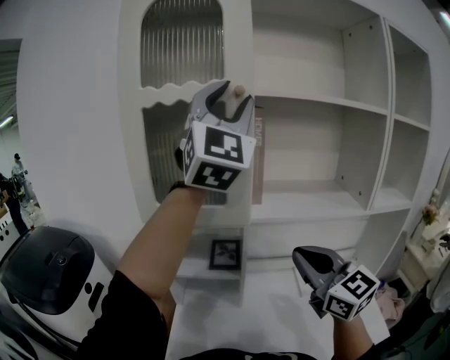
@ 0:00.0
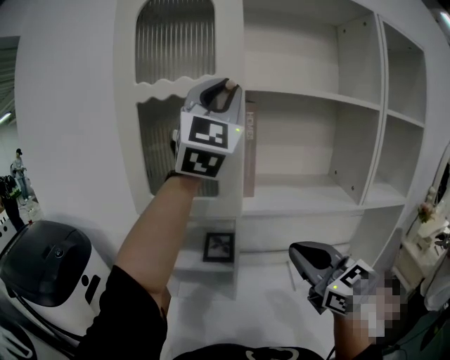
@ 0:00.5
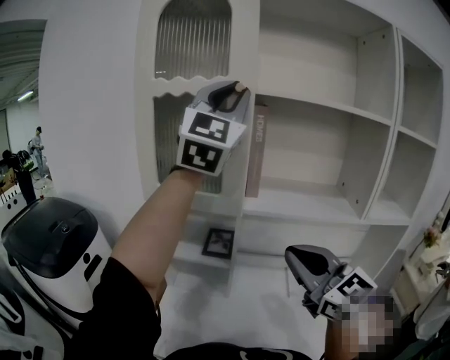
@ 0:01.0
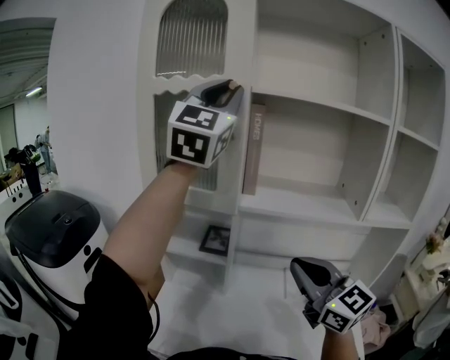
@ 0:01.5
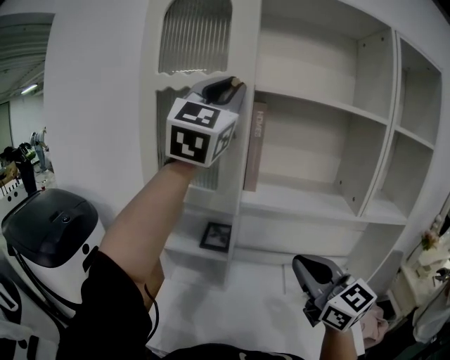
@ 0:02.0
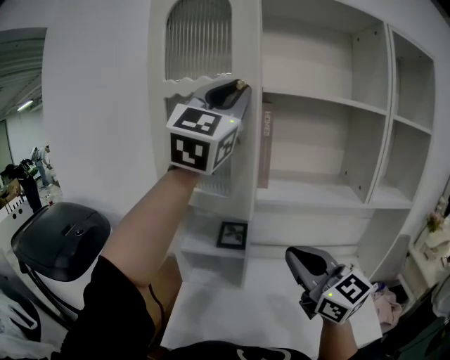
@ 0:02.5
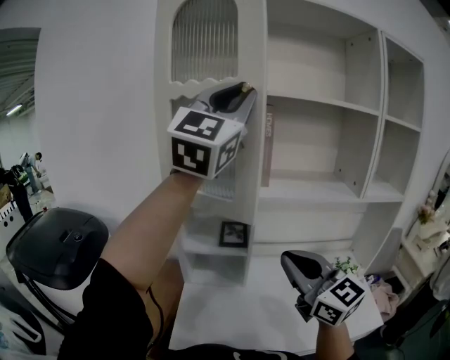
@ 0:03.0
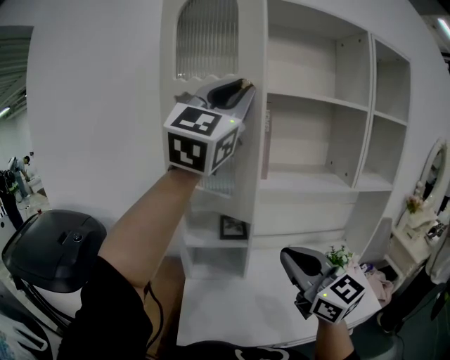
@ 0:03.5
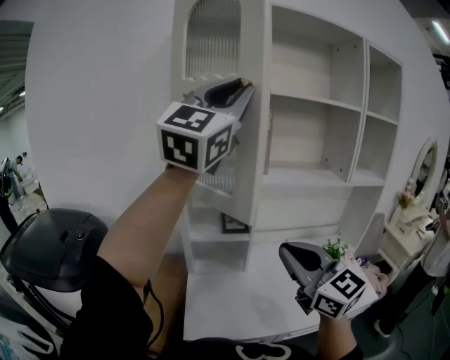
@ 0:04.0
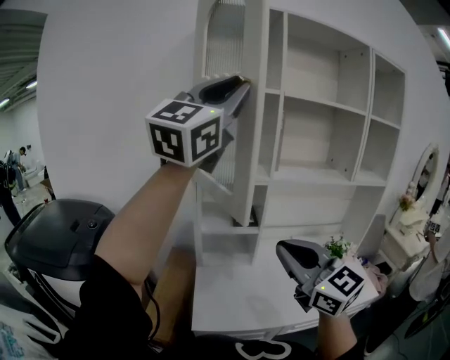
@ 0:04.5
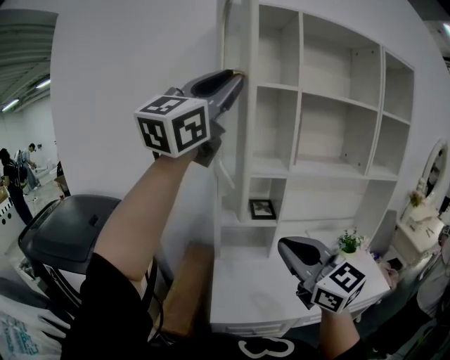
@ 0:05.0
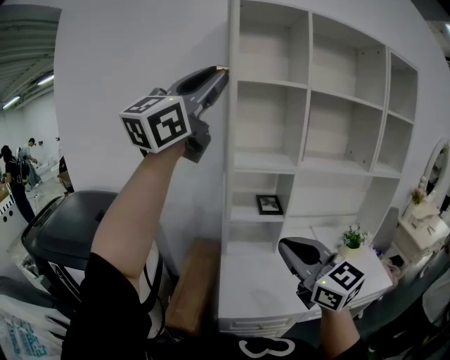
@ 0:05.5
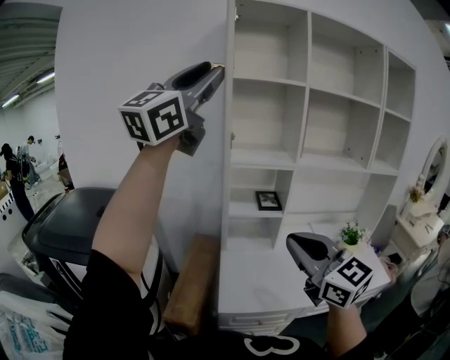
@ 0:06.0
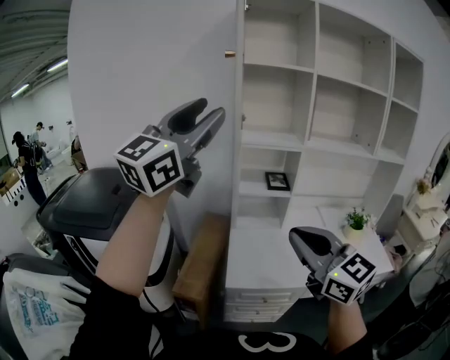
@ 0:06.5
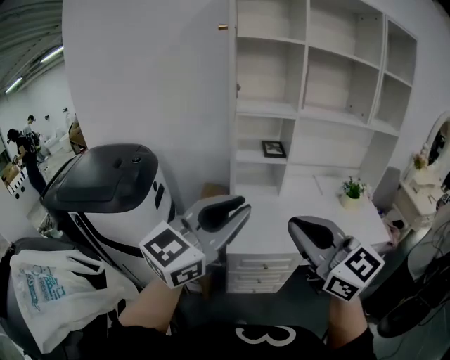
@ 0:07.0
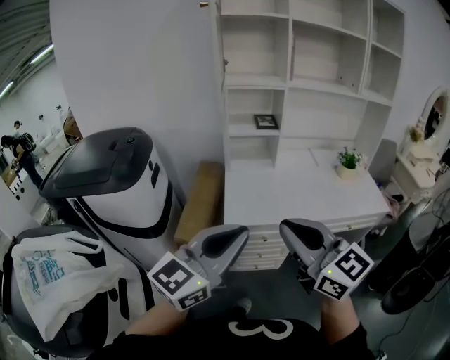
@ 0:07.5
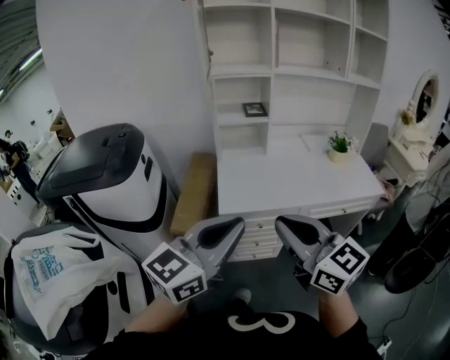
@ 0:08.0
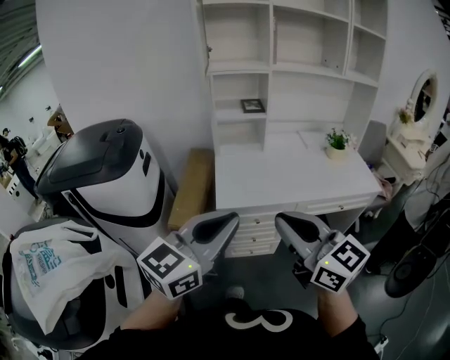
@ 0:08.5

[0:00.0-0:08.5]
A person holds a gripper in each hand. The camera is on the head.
0:00.0 to 0:02.0: The left gripper closes up; the right gripper shifts some 5 cm backward.
0:02.0 to 0:04.0: The left gripper shifts roughly 20 cm backward and to the left, and changes its angle by some 20 degrees. The right gripper travels to the left and backward by approximately 25 cm.
0:04.0 to 0:06.5: The left gripper shifts approximately 30 cm to the left, backward and downward, and opens its fingers. The right gripper shifts about 20 cm backward and to the left.
0:06.5 to 0:08.5: The right gripper heads backward and downward, covering approximately 25 cm. The left gripper heads downward, backward and to the right, covering roughly 40 cm, swivels roughly 30 degrees, and closes.

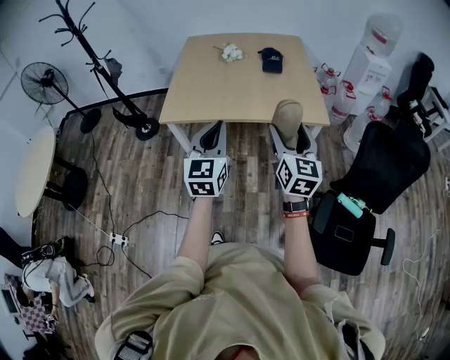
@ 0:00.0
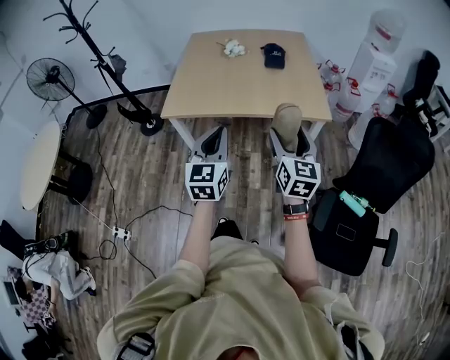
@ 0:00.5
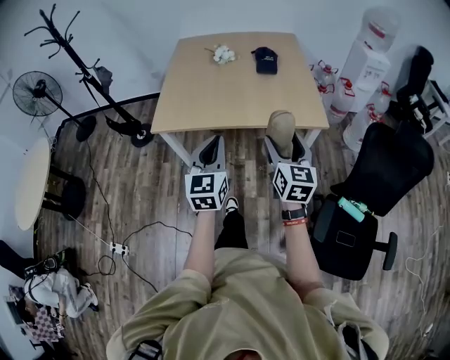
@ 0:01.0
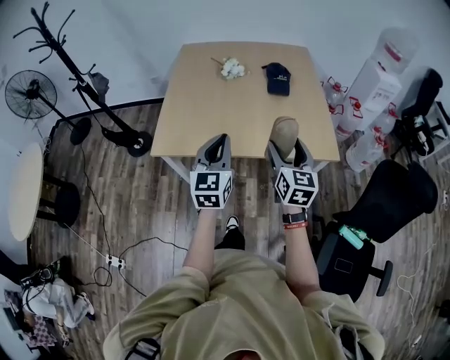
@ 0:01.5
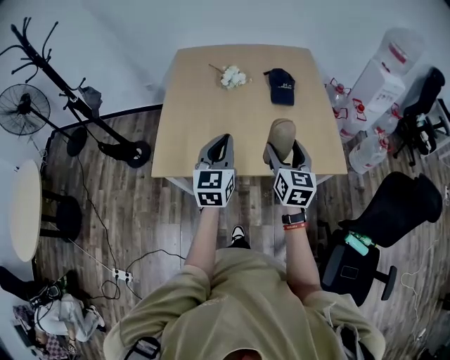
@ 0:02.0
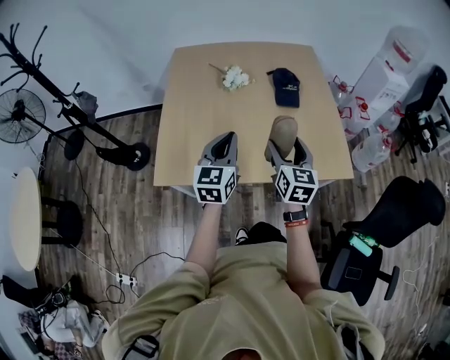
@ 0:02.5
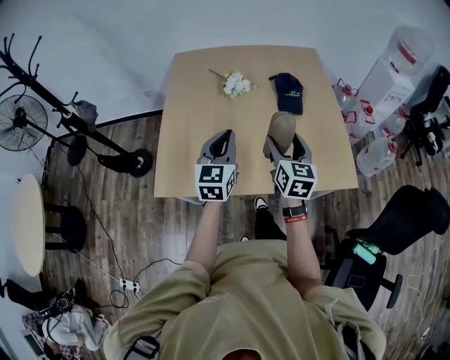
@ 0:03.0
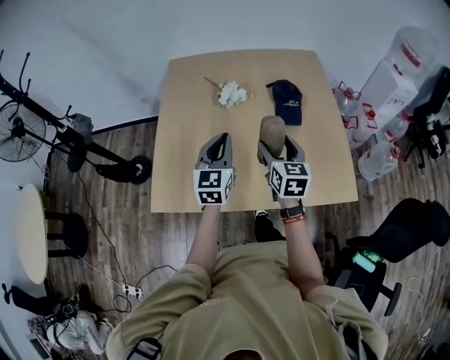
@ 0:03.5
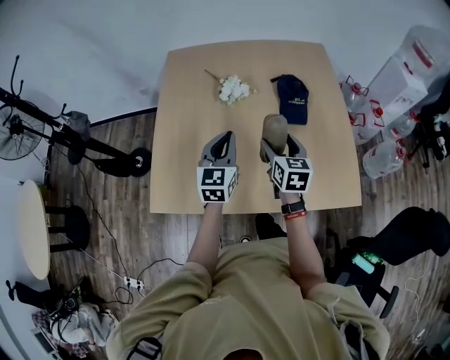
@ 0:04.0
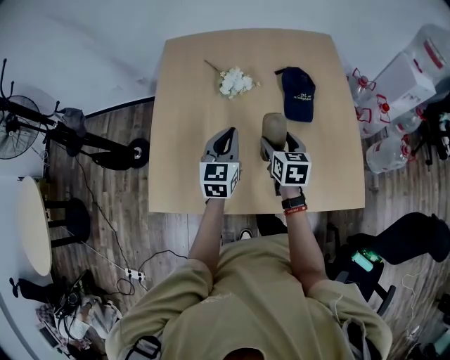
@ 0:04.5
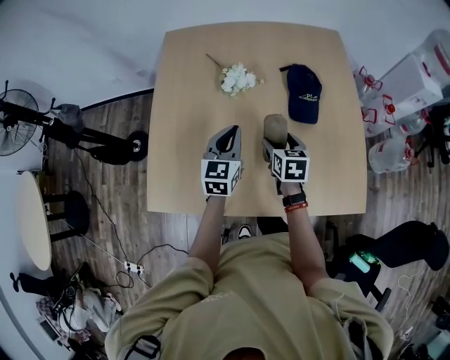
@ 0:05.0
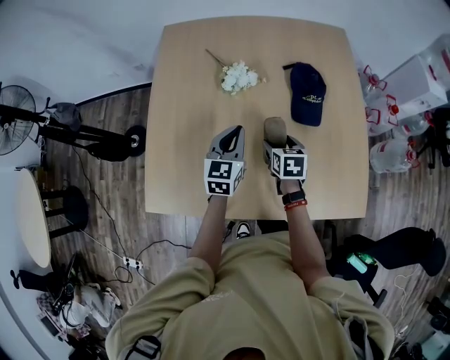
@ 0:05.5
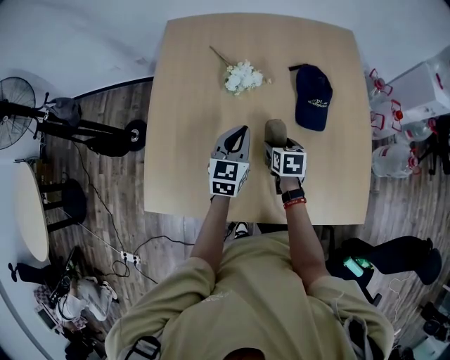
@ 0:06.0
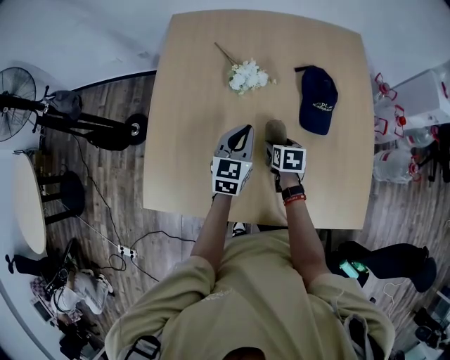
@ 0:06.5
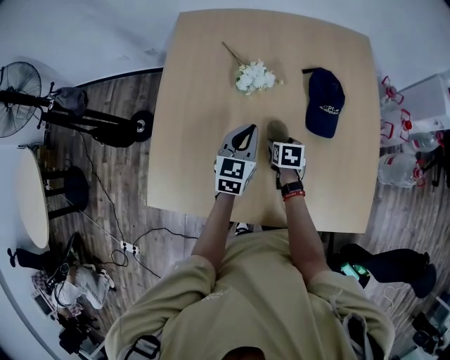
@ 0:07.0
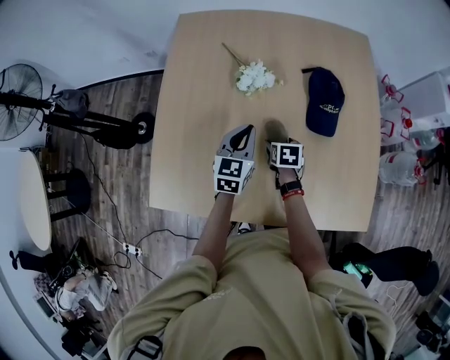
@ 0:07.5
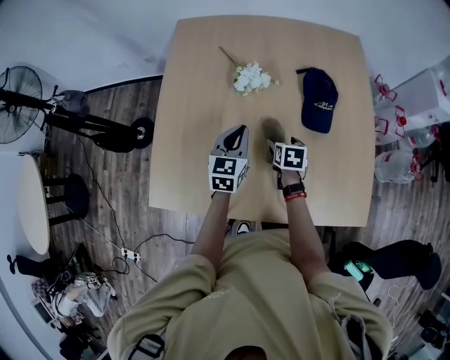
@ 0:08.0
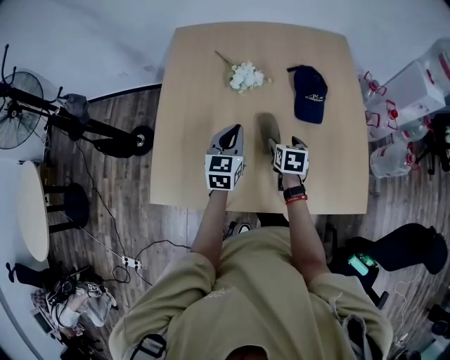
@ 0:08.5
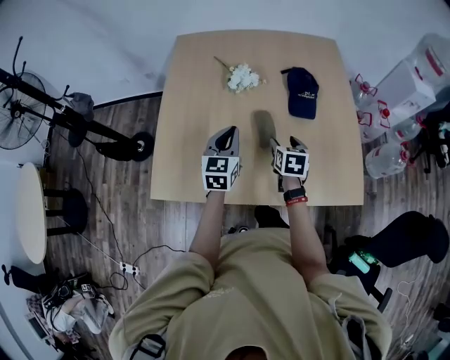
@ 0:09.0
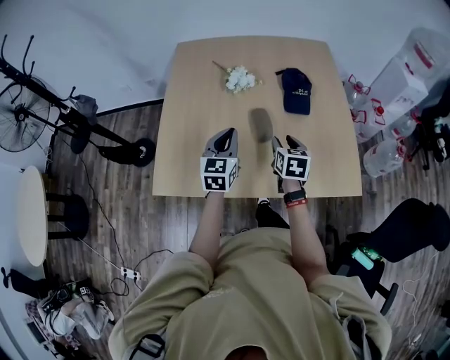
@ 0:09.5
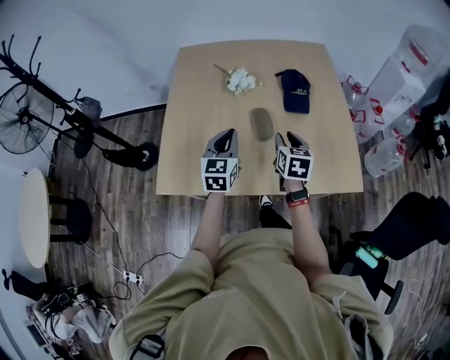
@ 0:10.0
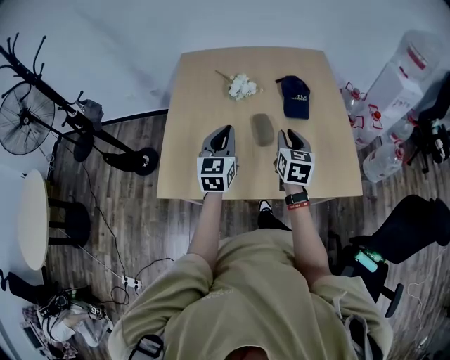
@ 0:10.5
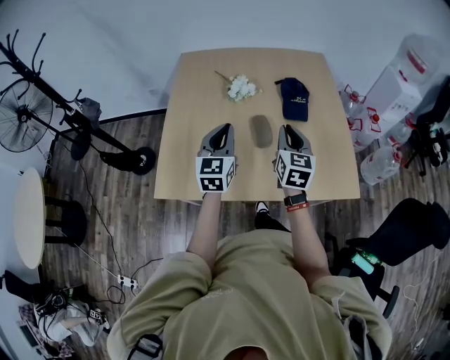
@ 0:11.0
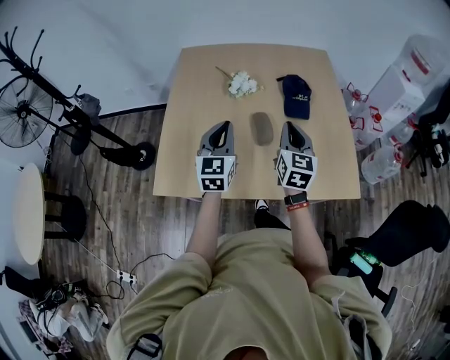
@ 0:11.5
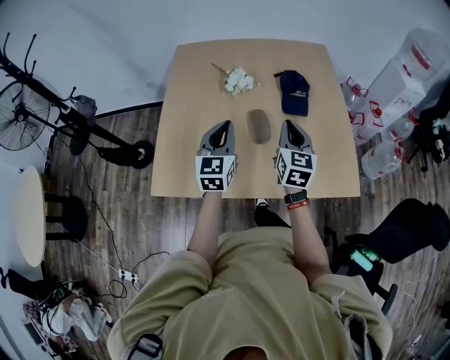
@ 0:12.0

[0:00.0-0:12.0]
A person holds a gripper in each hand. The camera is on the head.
0:00.0 to 0:02.0: The two grippers go approximately 40 cm forward.
0:02.0 to 0:04.0: Both grippers move forward, approximately 30 cm.
0:04.0 to 0:06.0: The right gripper moves downward and forward, approximately 20 cm, and turns by approximately 30 degrees, while the left gripper moves forward and downward, some 20 cm.
0:06.0 to 0:08.0: The grippers move only a little.
0:08.0 to 0:10.0: Both grippers travel together backward and upward, some 25 cm. The right gripper swivels some 30 degrees, and closes its fingers.
0:10.0 to 0:12.0: The right gripper heads upward, covering roughly 5 cm.

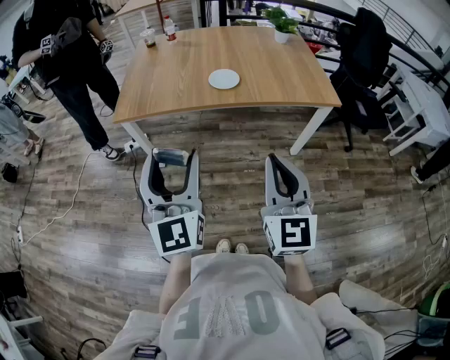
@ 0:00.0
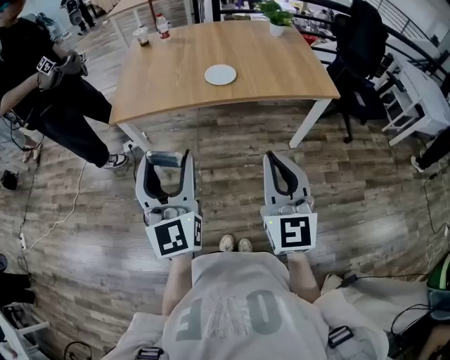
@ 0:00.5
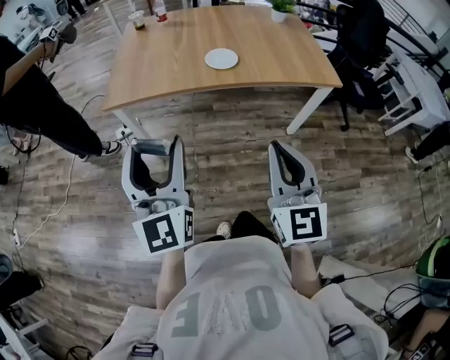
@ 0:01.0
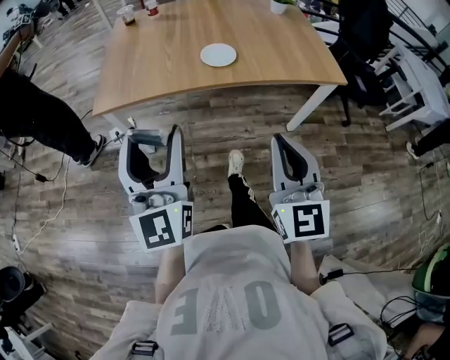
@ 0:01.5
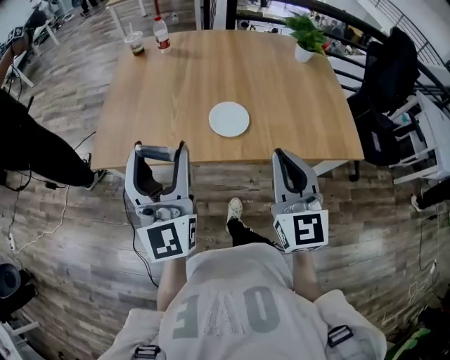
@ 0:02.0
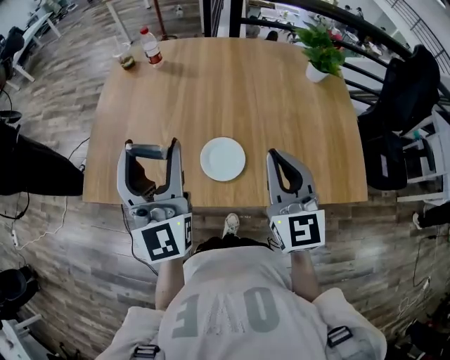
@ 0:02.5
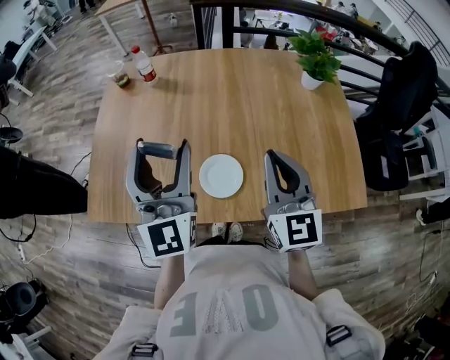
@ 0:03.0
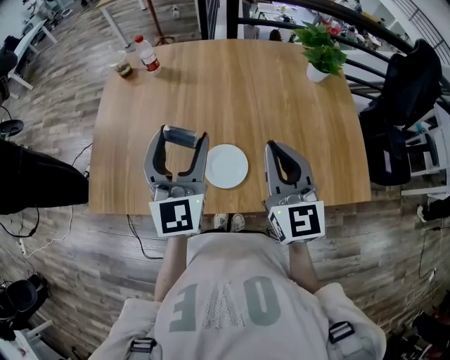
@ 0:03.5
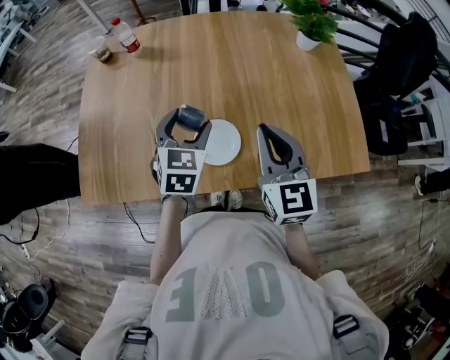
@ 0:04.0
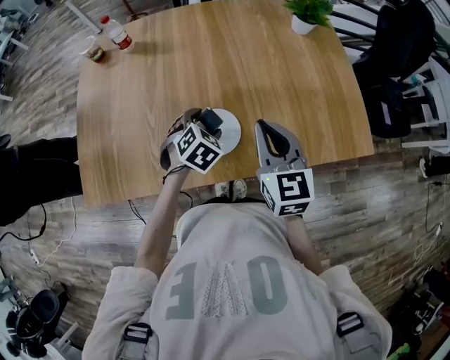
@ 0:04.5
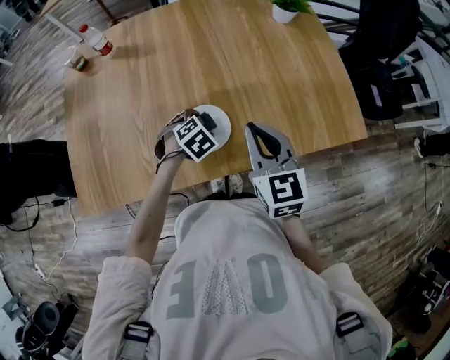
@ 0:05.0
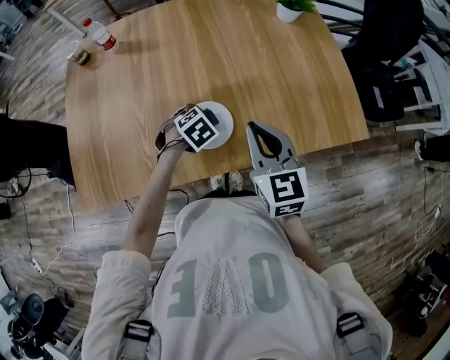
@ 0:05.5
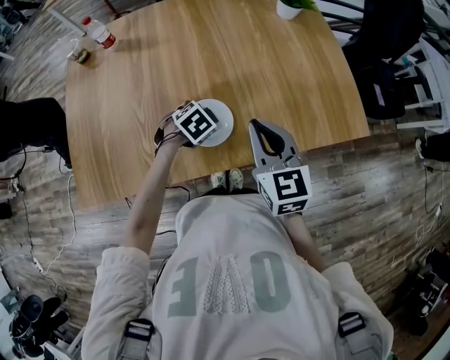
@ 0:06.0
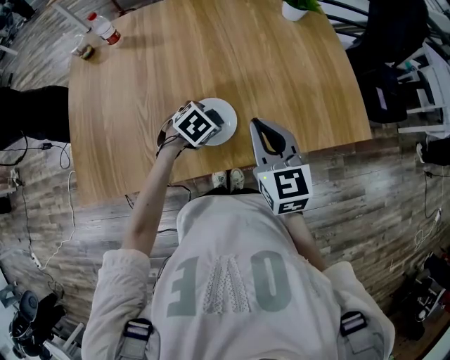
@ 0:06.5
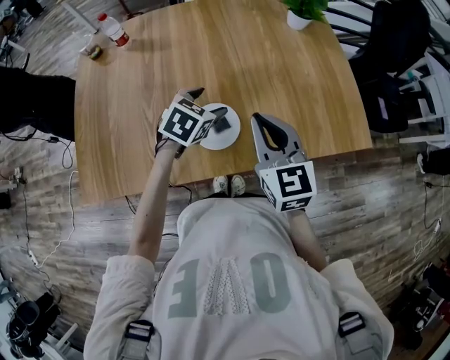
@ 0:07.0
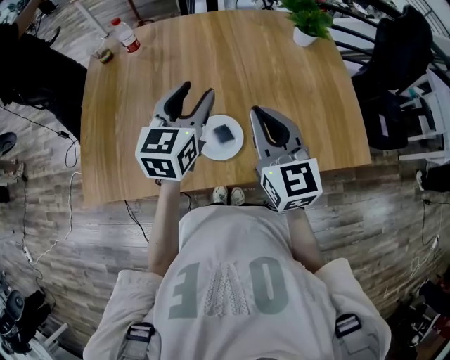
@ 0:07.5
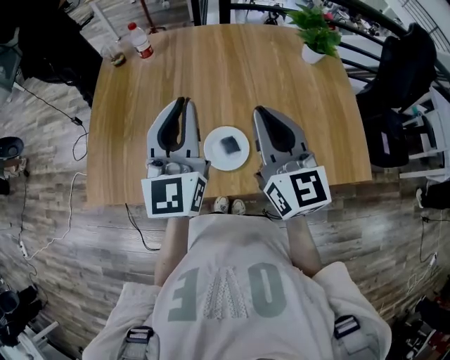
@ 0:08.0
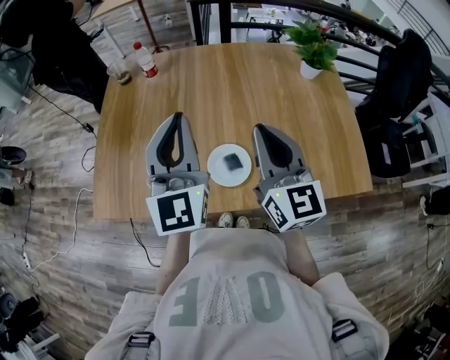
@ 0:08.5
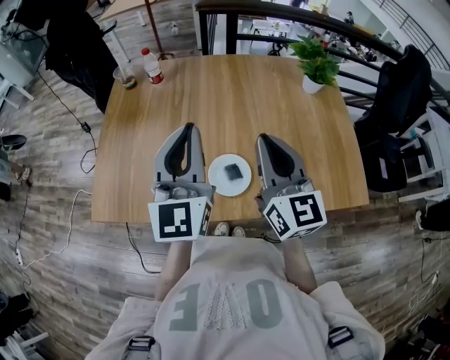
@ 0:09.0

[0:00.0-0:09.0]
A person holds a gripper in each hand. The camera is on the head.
0:00.0 to 0:02.0: The two grippers go about 30 cm forward.
0:02.0 to 0:04.5: The right gripper heads forward, covering some 20 cm. Meanwhile the left gripper goes about 40 cm downward, forward and to the right, and tips its fingers downward by some 80 degrees.
0:04.5 to 0:07.0: The left gripper moves approximately 5 cm.
0:07.0 to 0:09.0: The right gripper heads upward, covering some 10 cm, and rotates approximately 20 degrees. Meanwhile the left gripper is displaced upward by approximately 25 cm, tips its fingers upward by roughly 60 degrees, and closes its fingers.
